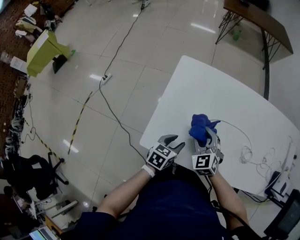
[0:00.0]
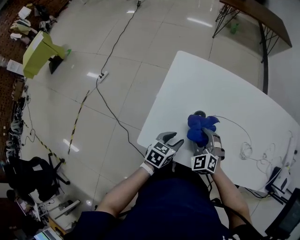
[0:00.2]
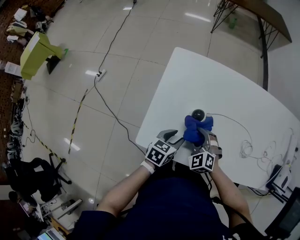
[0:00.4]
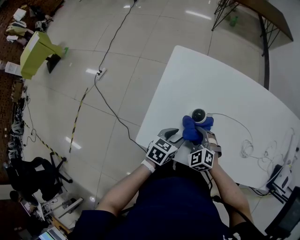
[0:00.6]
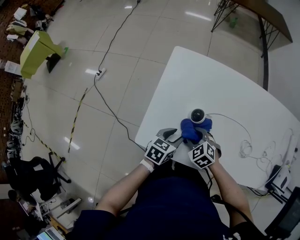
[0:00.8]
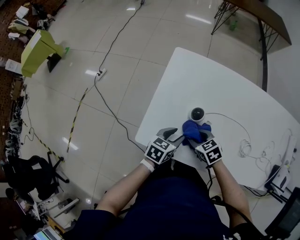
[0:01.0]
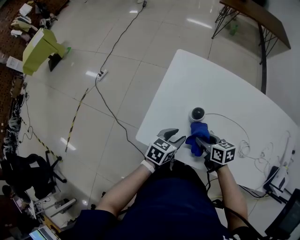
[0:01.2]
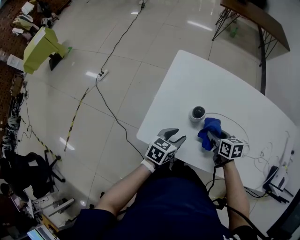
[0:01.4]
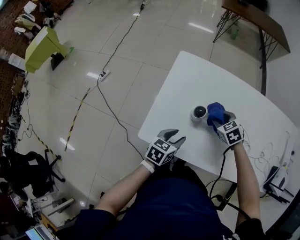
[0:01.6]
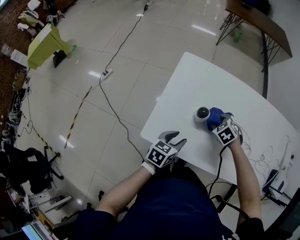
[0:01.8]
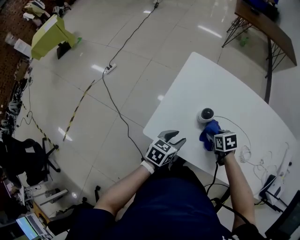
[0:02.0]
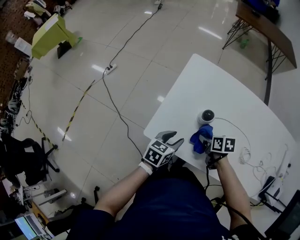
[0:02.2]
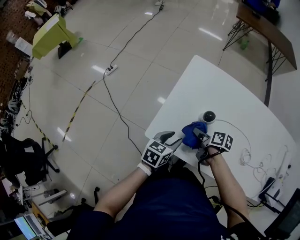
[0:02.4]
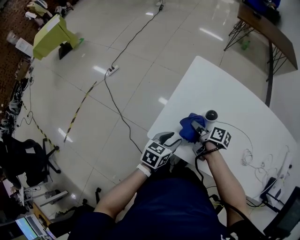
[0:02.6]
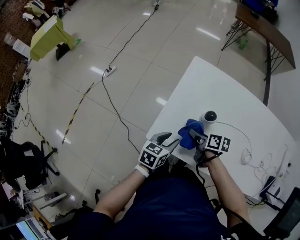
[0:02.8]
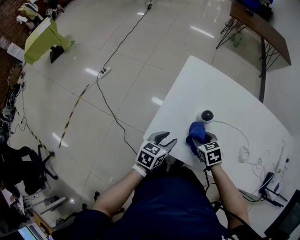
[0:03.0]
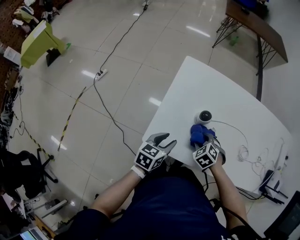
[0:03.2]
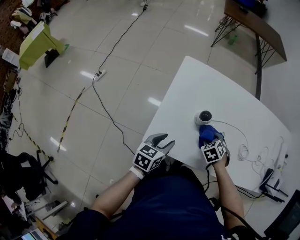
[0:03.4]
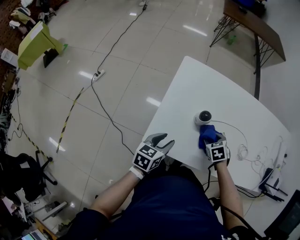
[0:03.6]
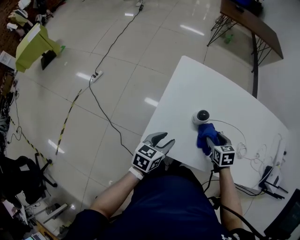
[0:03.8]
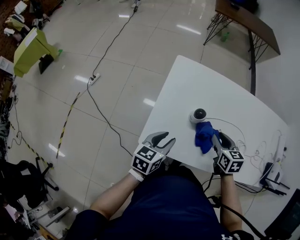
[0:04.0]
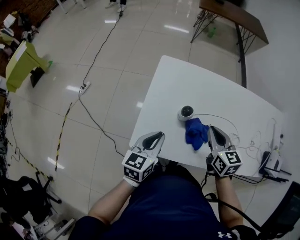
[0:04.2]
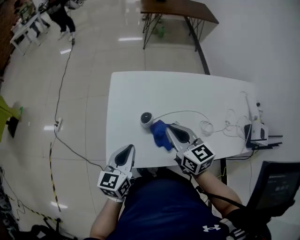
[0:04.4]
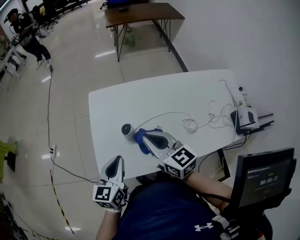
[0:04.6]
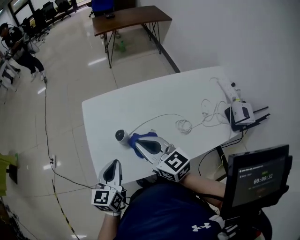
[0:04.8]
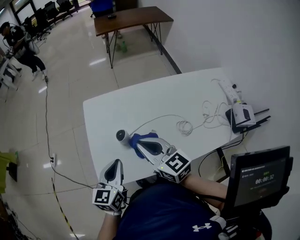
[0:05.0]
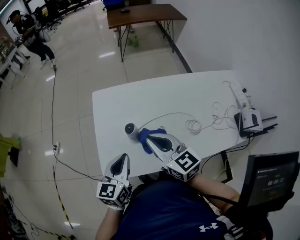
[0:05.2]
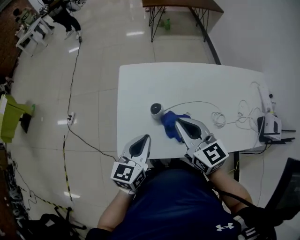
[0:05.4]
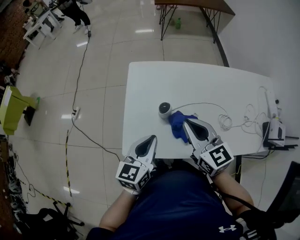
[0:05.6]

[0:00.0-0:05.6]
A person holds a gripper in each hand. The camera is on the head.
0:00.0 to 0:01.4: The right gripper heads to the right and downward, covering some 10 cm, and twists approximately 50 degrees clockwise, seen from behind.
0:01.4 to 0:02.8: The right gripper heads to the left, covering approximately 15 cm, and swivels about 30 degrees. Meanwhile the left gripper heads to the left, covering some 10 cm.
0:02.8 to 0:04.2: The grippers both shift upward by roughly 15 cm. The left gripper closes up. Meanwhile the right gripper changes its angle by roughly 50 degrees, and closes up.
0:04.2 to 0:05.6: The left gripper shifts roughly 5 cm to the right, while the right gripper moves upward, roughly 5 cm.

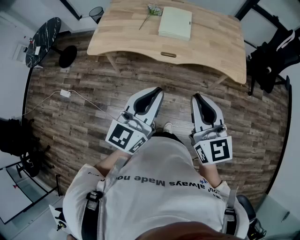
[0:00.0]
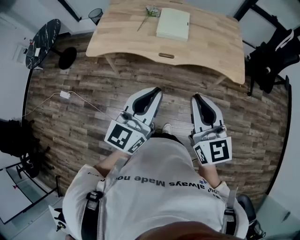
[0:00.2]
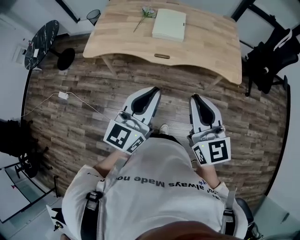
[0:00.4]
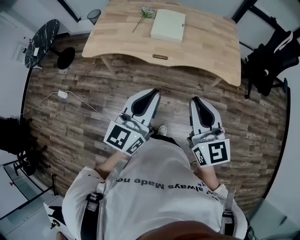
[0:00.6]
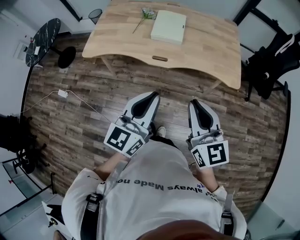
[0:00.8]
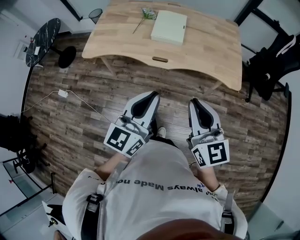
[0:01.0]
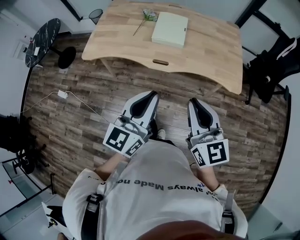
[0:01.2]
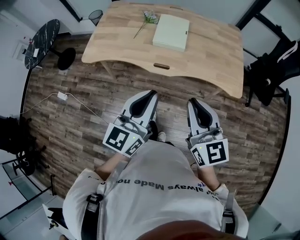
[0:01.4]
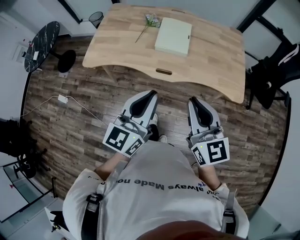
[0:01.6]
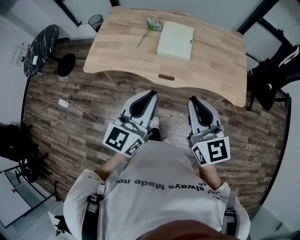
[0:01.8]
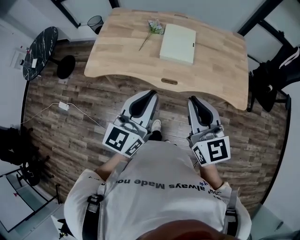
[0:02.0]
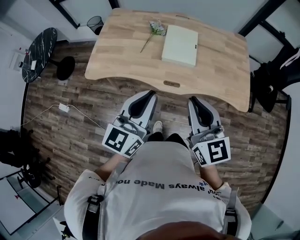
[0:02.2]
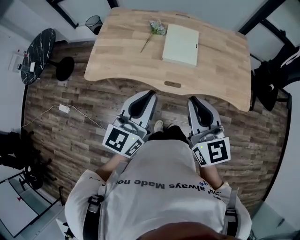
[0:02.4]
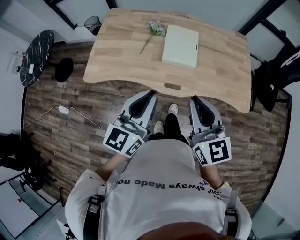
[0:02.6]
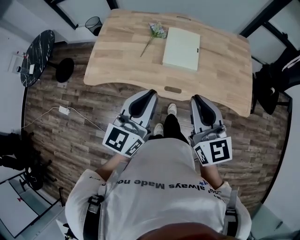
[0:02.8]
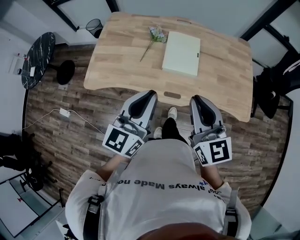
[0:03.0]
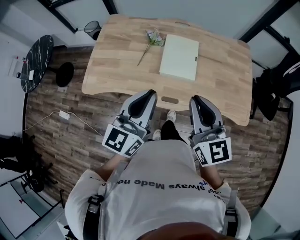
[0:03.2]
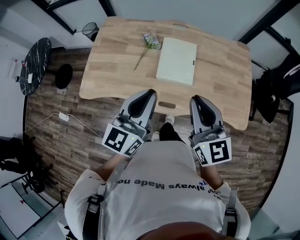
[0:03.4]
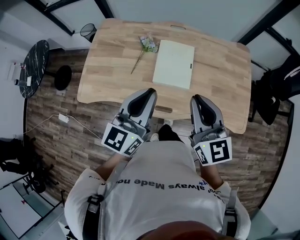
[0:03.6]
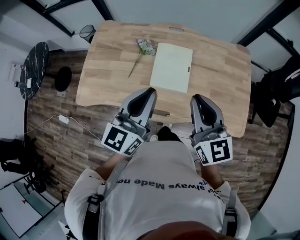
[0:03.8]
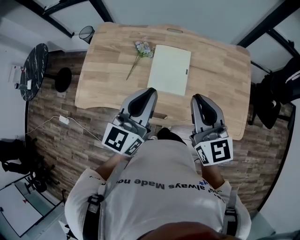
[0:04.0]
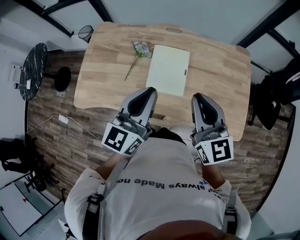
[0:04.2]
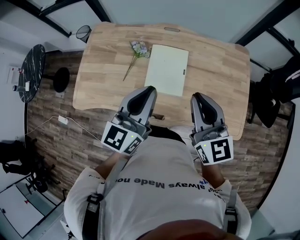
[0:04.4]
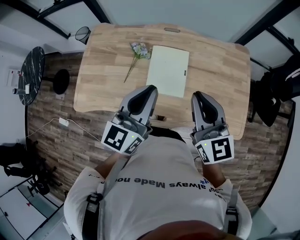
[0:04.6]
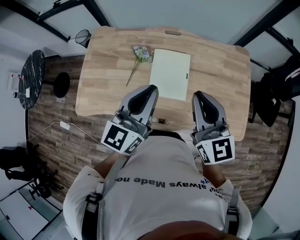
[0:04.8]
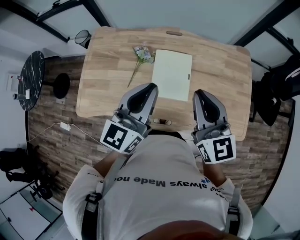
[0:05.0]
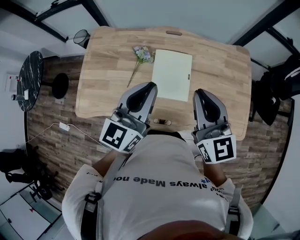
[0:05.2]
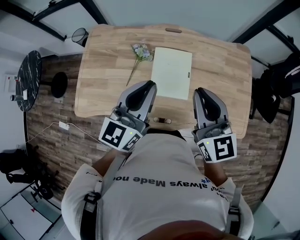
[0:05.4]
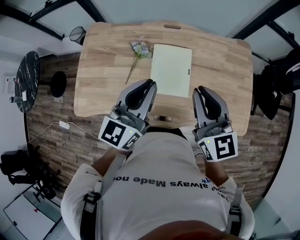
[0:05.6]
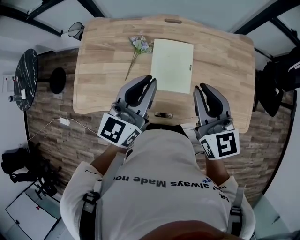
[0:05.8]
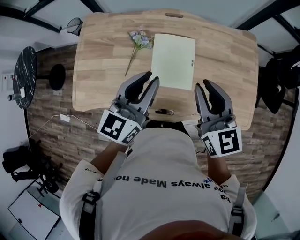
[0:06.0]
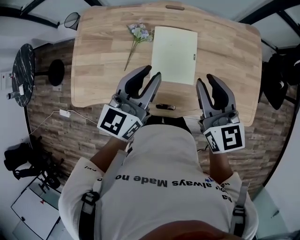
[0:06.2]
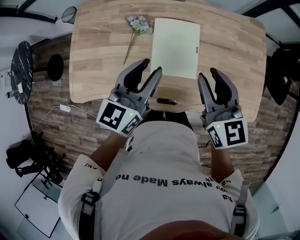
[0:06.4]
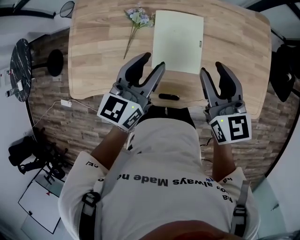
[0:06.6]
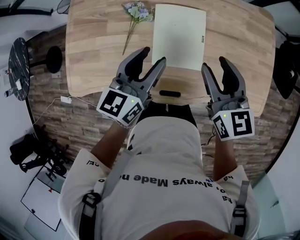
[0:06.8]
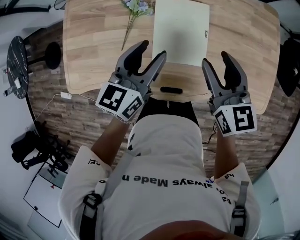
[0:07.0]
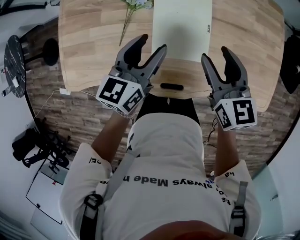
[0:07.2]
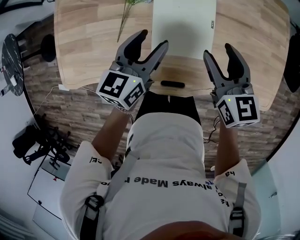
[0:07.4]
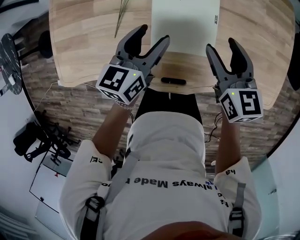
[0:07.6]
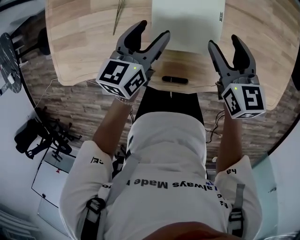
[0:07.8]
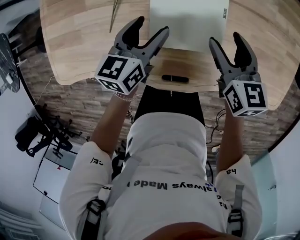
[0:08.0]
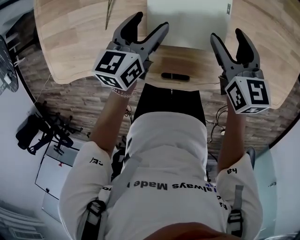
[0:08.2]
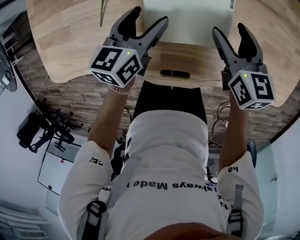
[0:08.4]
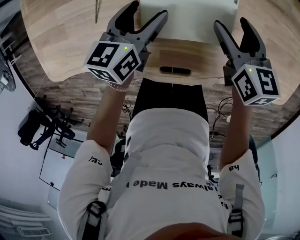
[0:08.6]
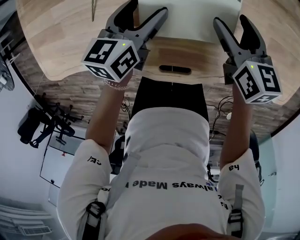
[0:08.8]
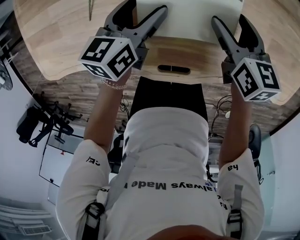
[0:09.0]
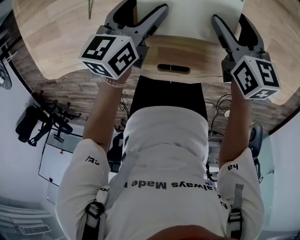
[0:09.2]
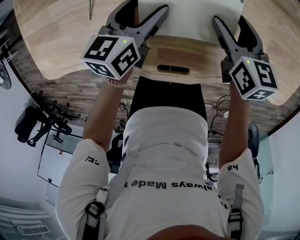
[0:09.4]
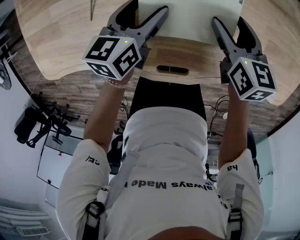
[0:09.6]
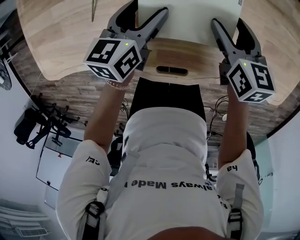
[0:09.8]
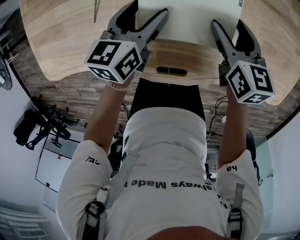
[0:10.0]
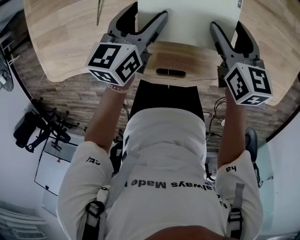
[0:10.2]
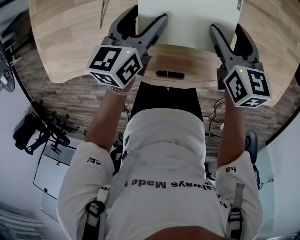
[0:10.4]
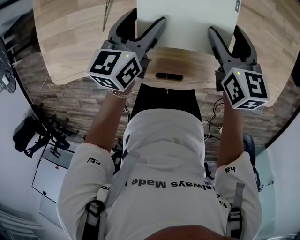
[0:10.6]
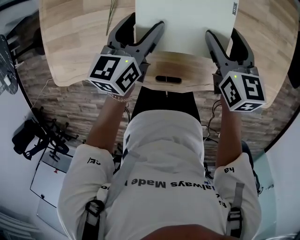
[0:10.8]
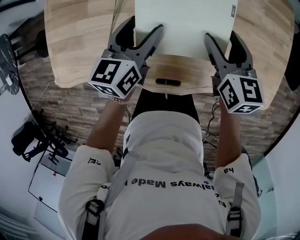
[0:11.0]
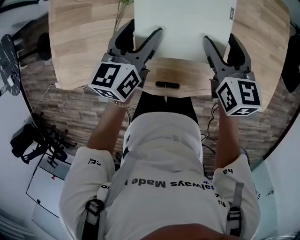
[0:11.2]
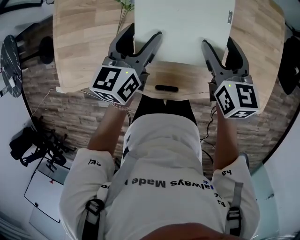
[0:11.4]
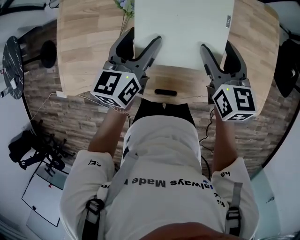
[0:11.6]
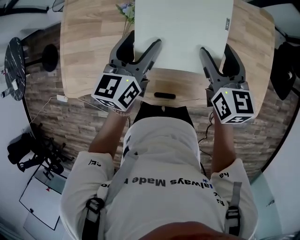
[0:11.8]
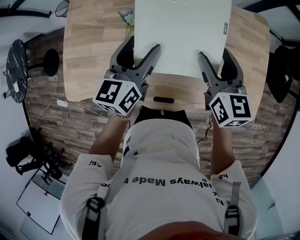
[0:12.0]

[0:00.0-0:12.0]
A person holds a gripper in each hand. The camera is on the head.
0:00.0 to 0:01.6: Both grippers move forward, some 10 cm.
0:01.6 to 0:03.0: Both grippers travel together forward and to the left, approximately 20 cm.
0:03.0 to 0:04.4: The two grippers go approximately 25 cm forward and to the right.
0:04.4 to 0:06.0: The right gripper heads forward, covering some 5 cm. The left gripper goes roughly 10 cm forward and downward.
0:06.0 to 0:07.6: Both grippers travel together downward, approximately 25 cm. The right gripper opens up, while the left gripper rotates about 20 degrees, and opens.
0:07.6 to 0:09.0: Both grippers travel together downward, approximately 15 cm.
0:09.0 to 0:10.4: Both grippers travel together upward, approximately 5 cm.
0:10.4 to 0:12.0: The two grippers go approximately 25 cm upward.

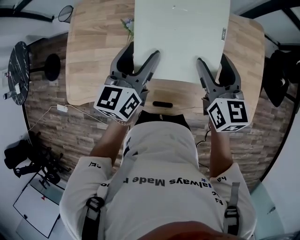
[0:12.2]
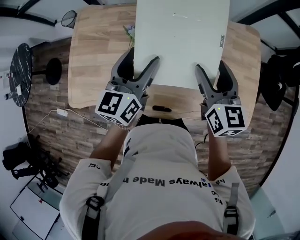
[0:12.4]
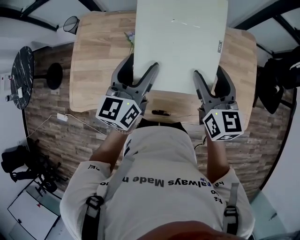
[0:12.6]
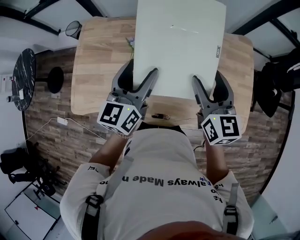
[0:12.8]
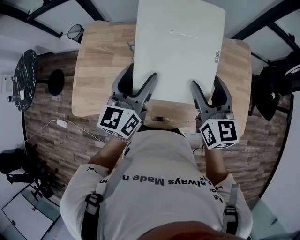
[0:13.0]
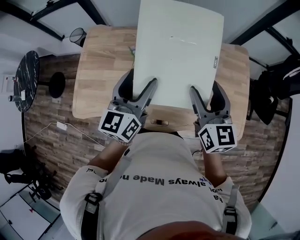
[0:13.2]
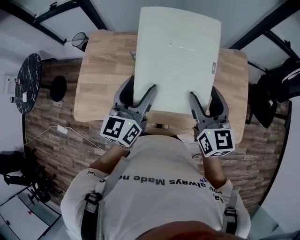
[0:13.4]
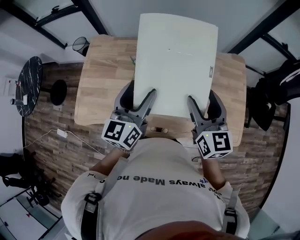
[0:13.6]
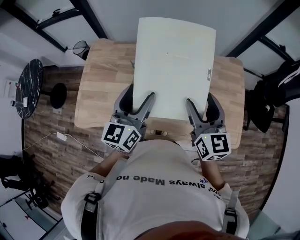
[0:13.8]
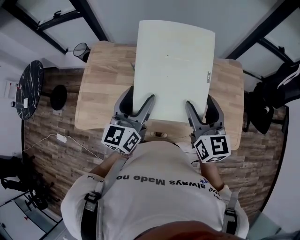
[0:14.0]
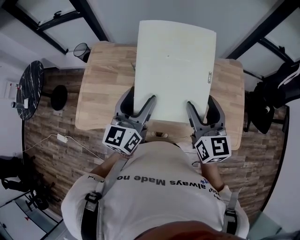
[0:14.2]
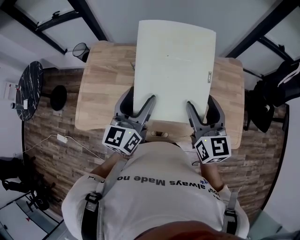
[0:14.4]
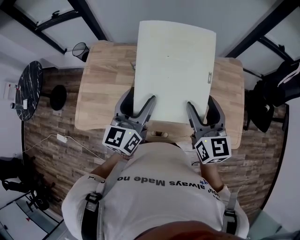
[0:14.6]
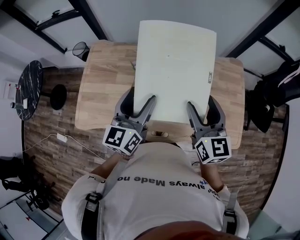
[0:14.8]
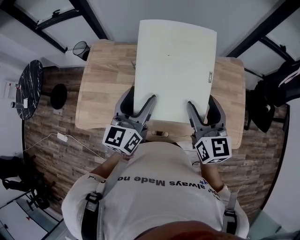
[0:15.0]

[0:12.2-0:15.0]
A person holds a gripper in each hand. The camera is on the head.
0:12.2 to 0:13.6: The grippers both shift upward and backward by some 15 cm.
0:13.6 to 0:15.0: The grippers stay close to where they were, moving slightly.

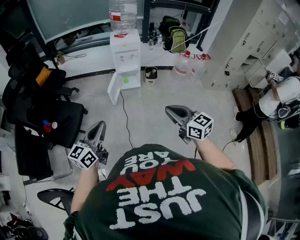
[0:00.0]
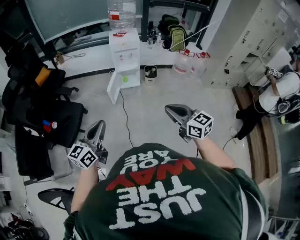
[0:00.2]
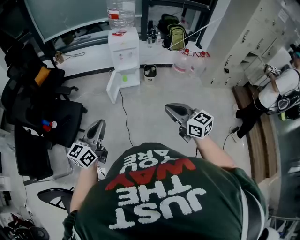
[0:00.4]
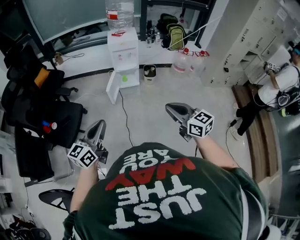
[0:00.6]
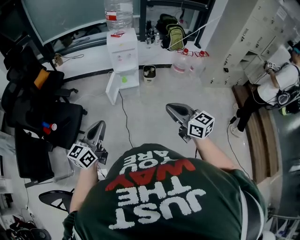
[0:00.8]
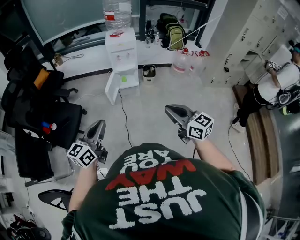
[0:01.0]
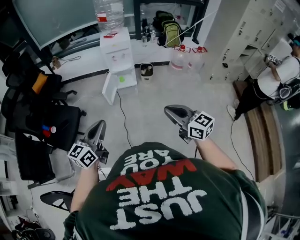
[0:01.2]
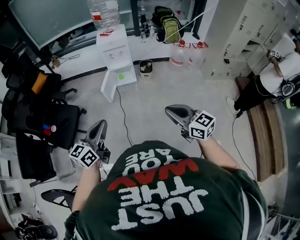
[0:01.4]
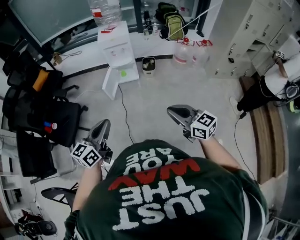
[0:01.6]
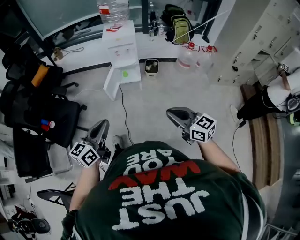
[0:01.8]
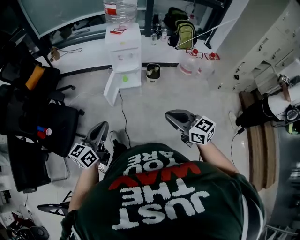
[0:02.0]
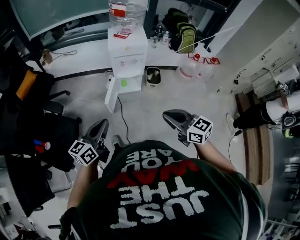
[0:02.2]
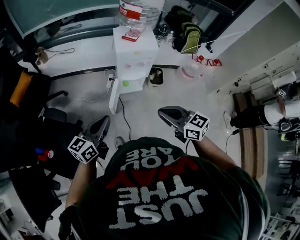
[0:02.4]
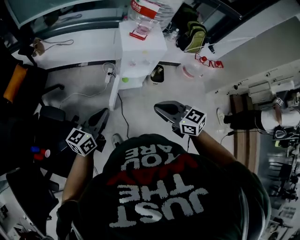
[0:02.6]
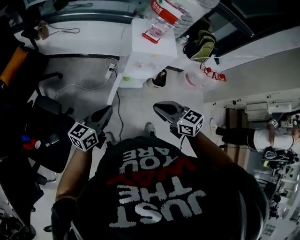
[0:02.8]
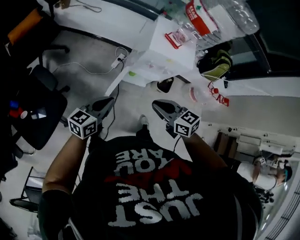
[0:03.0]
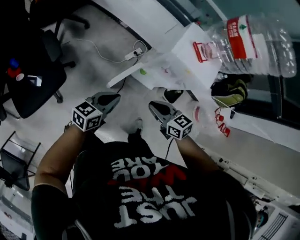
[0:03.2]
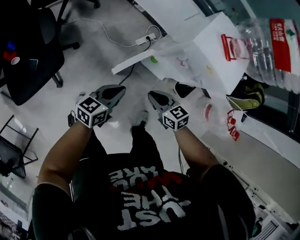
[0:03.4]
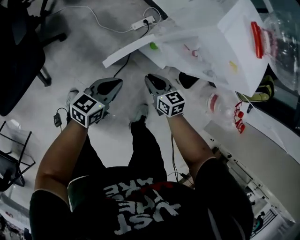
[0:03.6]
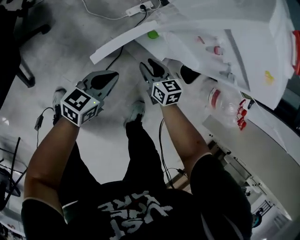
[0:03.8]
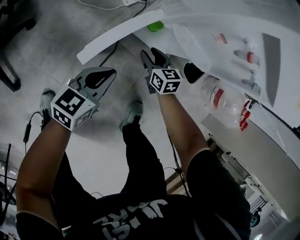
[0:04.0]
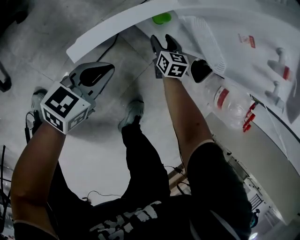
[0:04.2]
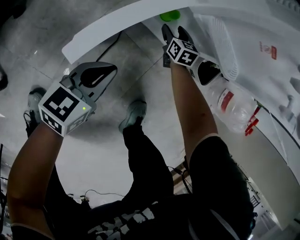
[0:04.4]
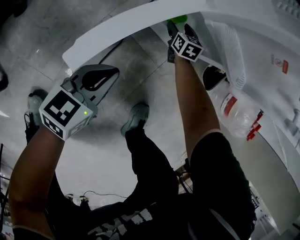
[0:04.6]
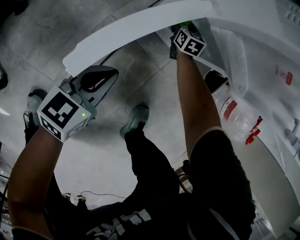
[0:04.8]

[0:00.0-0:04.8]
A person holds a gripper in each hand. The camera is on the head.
0:00.0 to 0:01.6: The two grippers go some 15 cm to the right.
0:01.6 to 0:03.2: The pair of grippers is taken forward, approximately 70 cm. The left gripper moves downward, some 30 cm. The right gripper changes its angle by approximately 40 degrees.
0:03.2 to 0:04.8: The grippers both shift downward by approximately 60 cm. The right gripper changes its angle by some 40 degrees, and opens its fingers.
